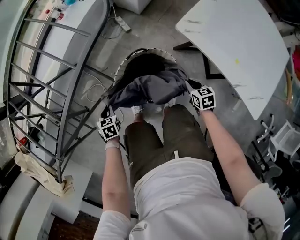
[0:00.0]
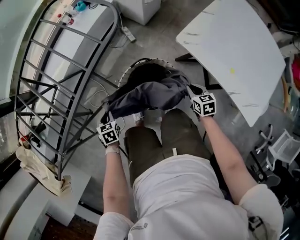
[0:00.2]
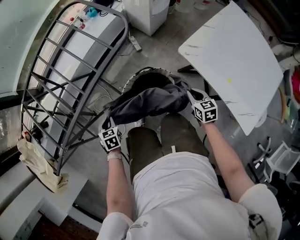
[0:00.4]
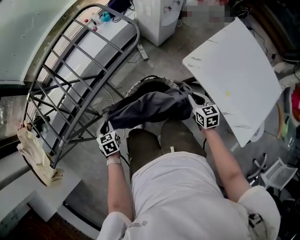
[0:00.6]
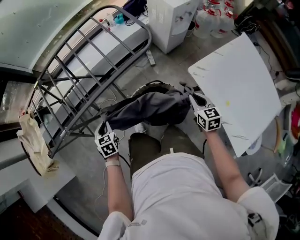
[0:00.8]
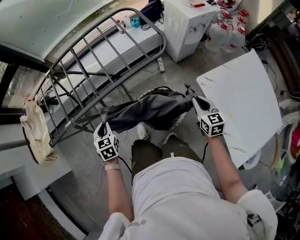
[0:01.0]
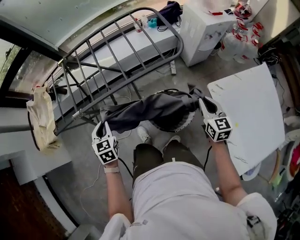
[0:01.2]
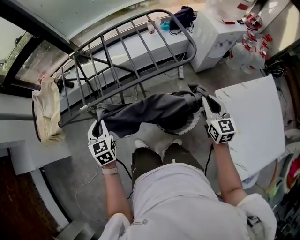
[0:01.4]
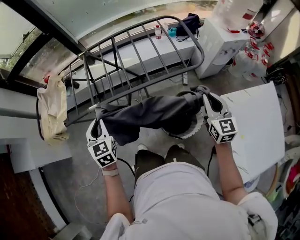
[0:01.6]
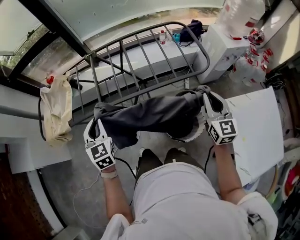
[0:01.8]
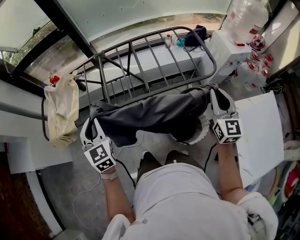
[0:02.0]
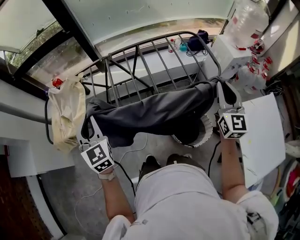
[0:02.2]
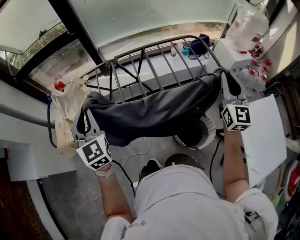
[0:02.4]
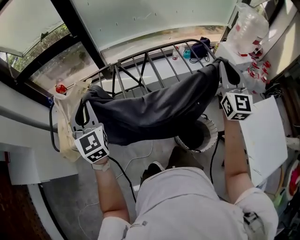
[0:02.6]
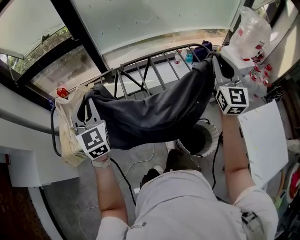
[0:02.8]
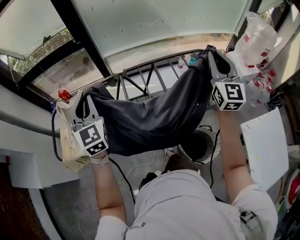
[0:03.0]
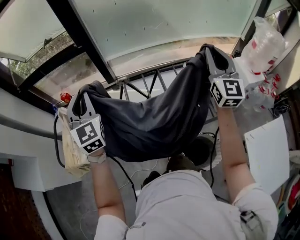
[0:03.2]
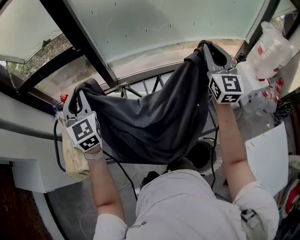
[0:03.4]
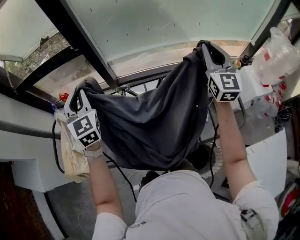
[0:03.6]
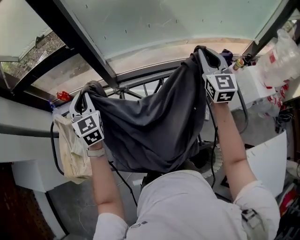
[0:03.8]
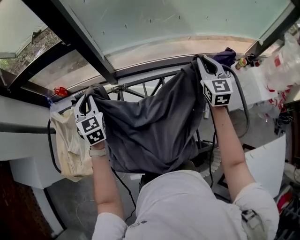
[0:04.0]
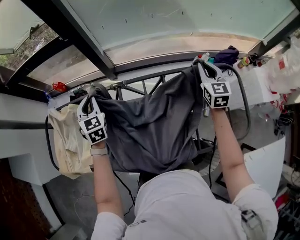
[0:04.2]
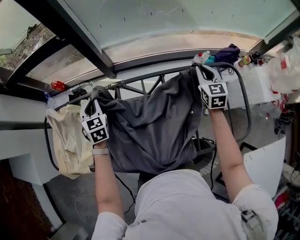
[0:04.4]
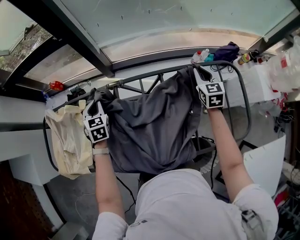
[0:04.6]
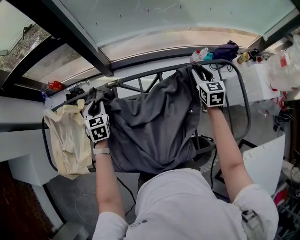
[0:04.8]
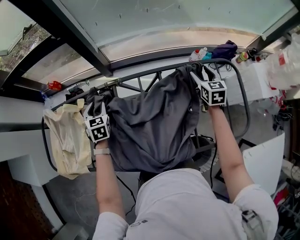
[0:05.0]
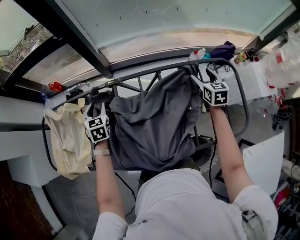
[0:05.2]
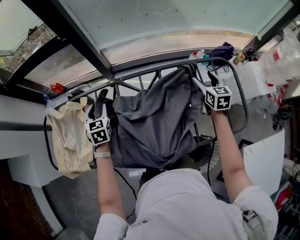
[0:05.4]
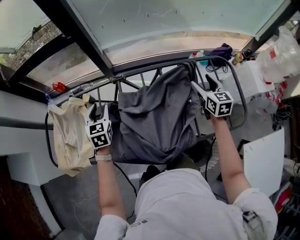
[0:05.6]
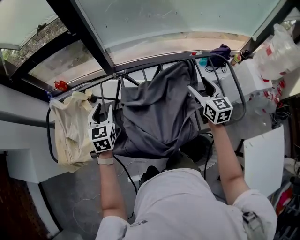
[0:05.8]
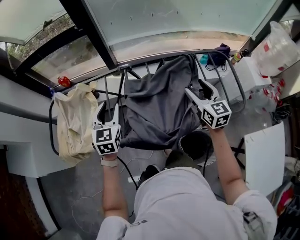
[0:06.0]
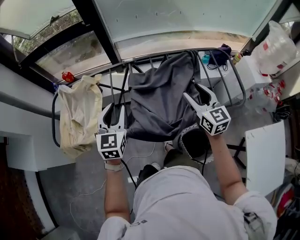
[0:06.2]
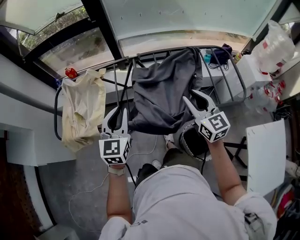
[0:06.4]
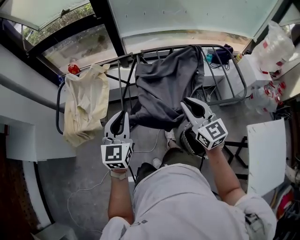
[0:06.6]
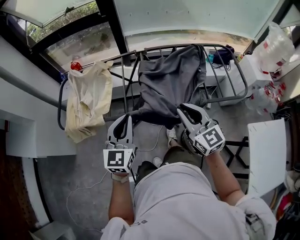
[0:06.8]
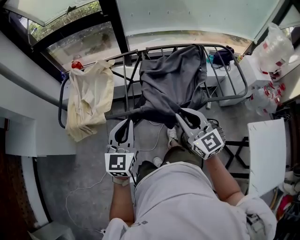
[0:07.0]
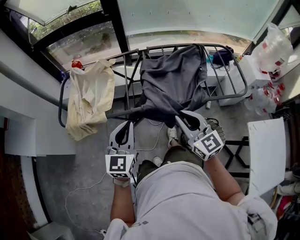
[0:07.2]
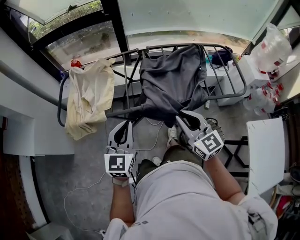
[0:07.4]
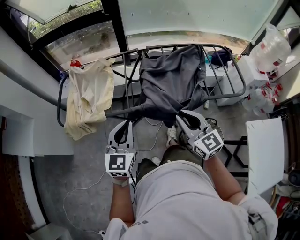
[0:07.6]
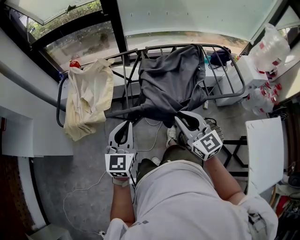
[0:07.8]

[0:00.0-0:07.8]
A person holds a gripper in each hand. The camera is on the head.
0:00.0 to 0:01.6: The grippers both shift upward by some 40 cm. The right gripper tips its fingers upward by approximately 40 degrees; the left gripper points its fingers roughly 40 degrees further upward.
0:01.6 to 0:03.2: The grippers both shift forward, upward and to the left by some 40 cm. The left gripper turns by about 30 degrees; the right gripper swivels about 30 degrees.
0:03.2 to 0:04.6: Both grippers move downward and forward, about 35 cm. The left gripper tilts its fingers some 40 degrees downward, while the right gripper angles its fingers downward, by approximately 40 degrees.
0:04.6 to 0:06.2: The left gripper shifts approximately 30 cm backward and upward, turns by approximately 30 degrees, and opens; the right gripper travels backward and to the left by approximately 35 cm, changes its angle by about 20 degrees, and opens its fingers.
0:06.2 to 0:07.8: The grippers both shift backward and to the left by about 25 cm. The left gripper closes. Meanwhile the right gripper closes its fingers.

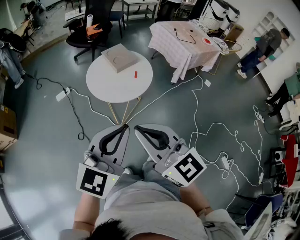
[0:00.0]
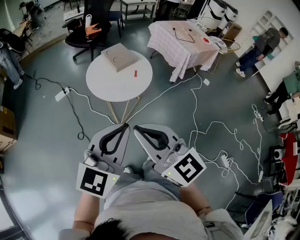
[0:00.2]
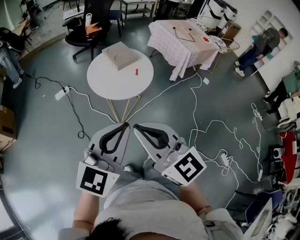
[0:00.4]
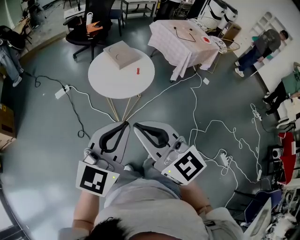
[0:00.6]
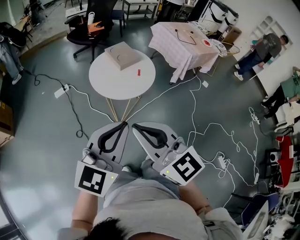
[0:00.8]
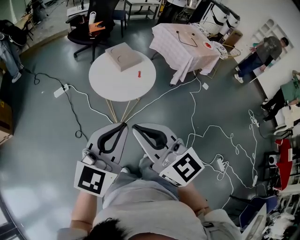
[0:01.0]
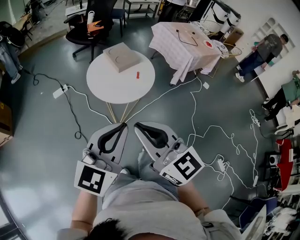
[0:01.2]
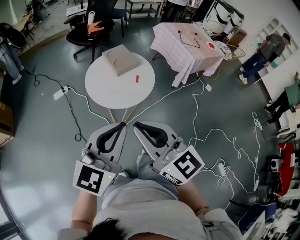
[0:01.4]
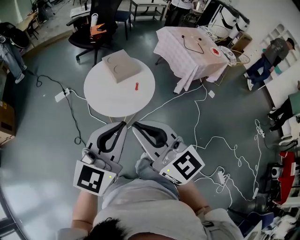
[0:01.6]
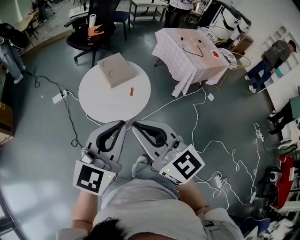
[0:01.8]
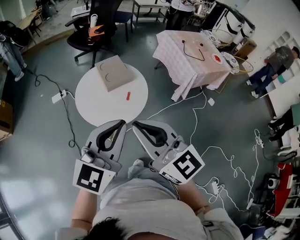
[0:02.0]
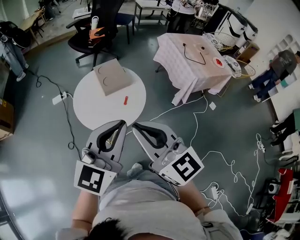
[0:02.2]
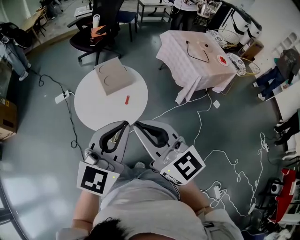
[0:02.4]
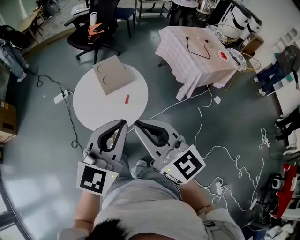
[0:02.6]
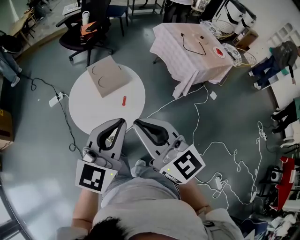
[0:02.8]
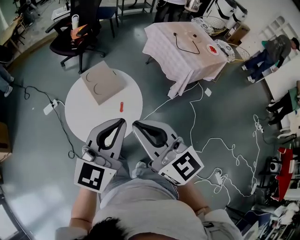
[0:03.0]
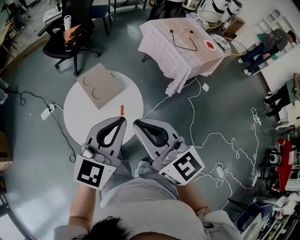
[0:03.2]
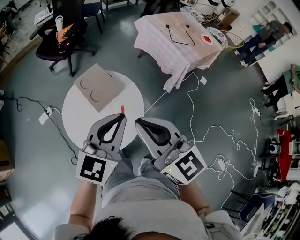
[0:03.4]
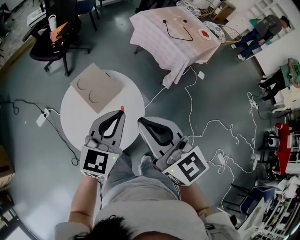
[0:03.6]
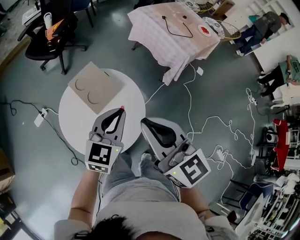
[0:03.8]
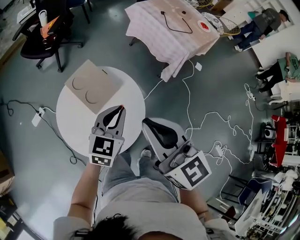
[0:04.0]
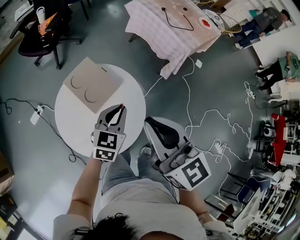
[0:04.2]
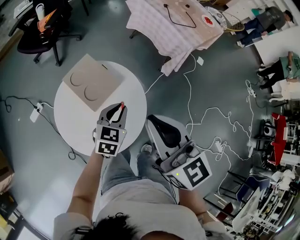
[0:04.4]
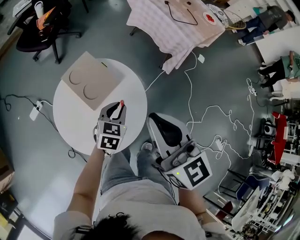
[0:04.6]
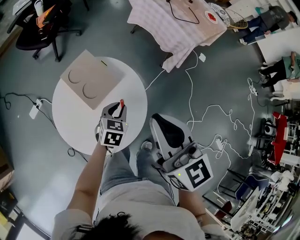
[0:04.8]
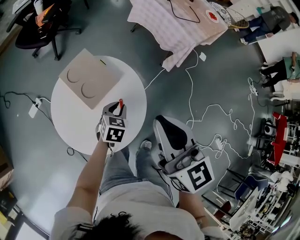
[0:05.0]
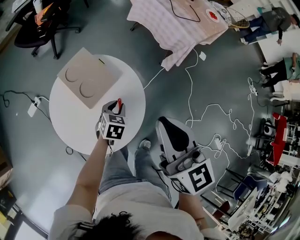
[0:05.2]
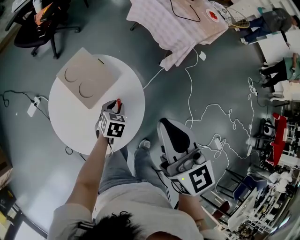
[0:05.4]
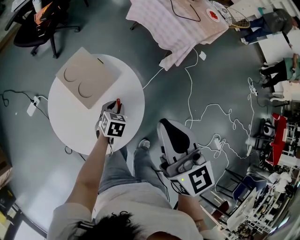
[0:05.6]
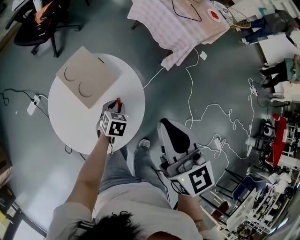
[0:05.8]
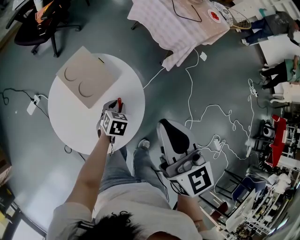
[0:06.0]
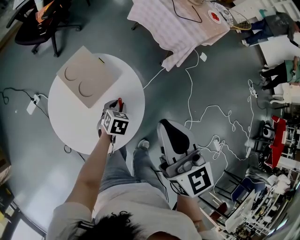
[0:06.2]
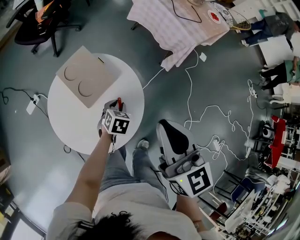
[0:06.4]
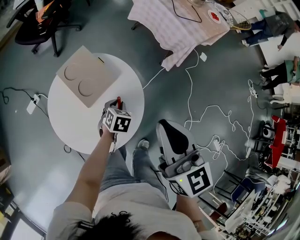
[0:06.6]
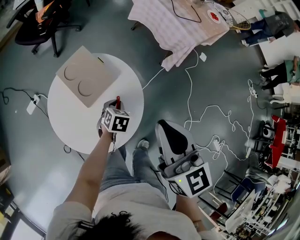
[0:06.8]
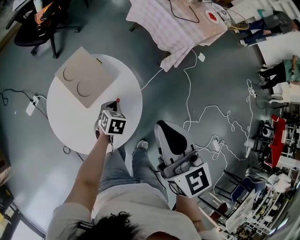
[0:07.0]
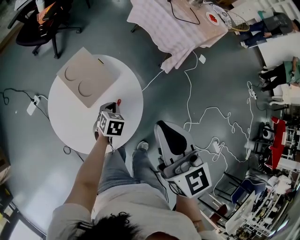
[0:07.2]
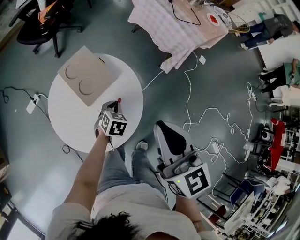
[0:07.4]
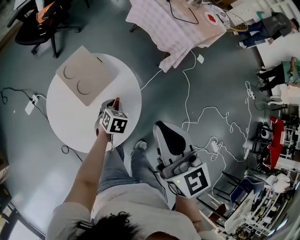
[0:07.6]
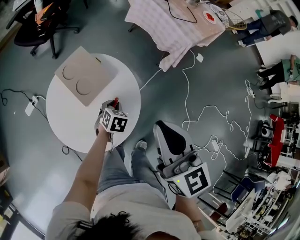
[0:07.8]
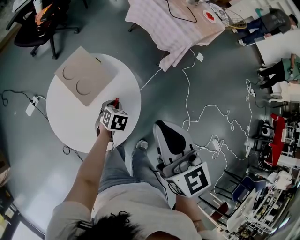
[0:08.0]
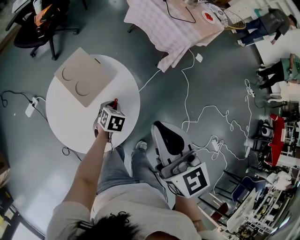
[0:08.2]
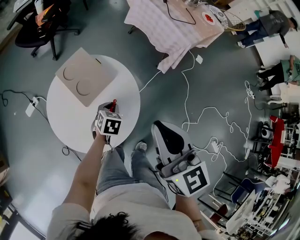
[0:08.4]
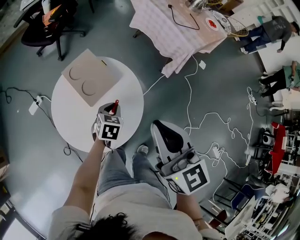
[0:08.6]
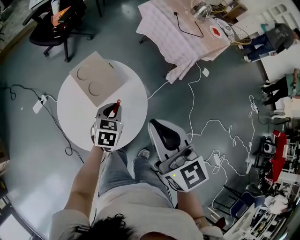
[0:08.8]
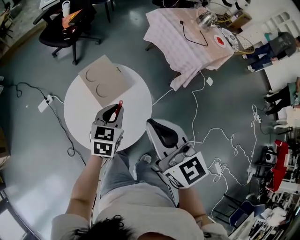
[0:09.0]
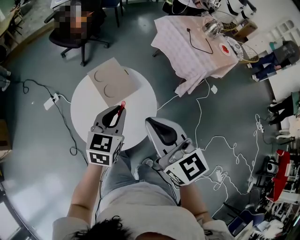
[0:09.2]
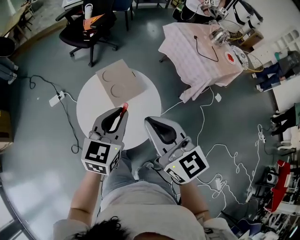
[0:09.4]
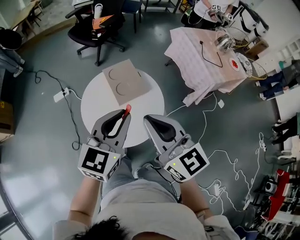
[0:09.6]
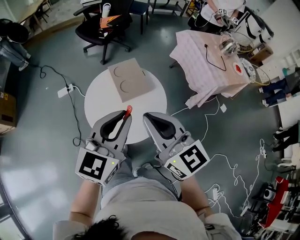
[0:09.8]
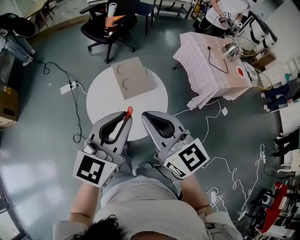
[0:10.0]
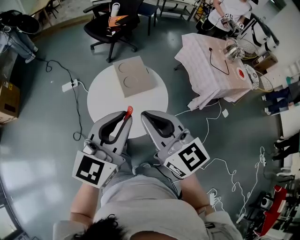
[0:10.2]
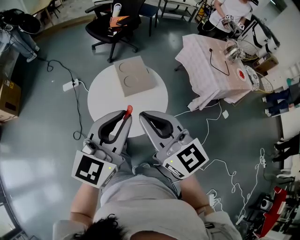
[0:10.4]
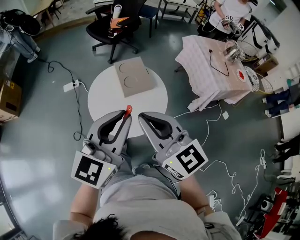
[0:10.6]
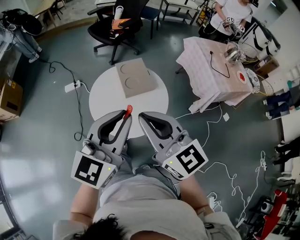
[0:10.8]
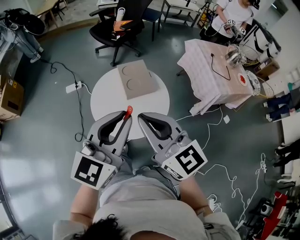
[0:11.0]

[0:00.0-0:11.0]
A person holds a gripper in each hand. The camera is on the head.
0:00.0 to 0:01.6: Both grippers travel together forward, some 10 cm.
0:01.6 to 0:03.2: The grippers both shift forward and to the right by about 25 cm.
0:03.2 to 0:04.8: The left gripper moves downward and forward, about 35 cm, and points its fingers some 40 degrees further downward. The right gripper heads forward and downward, covering about 10 cm, and swivels roughly 20 degrees.
0:04.8 to 0:06.2: The left gripper travels downward by roughly 5 cm.
0:06.2 to 0:07.8: The grippers make only small movements.
0:07.8 to 0:09.4: The right gripper moves to the left, roughly 10 cm, and turns by roughly 30 degrees, while the left gripper is displaced upward by approximately 30 cm, and points its fingers about 40 degrees further upward.
0:09.4 to 0:11.0: The left gripper heads backward and upward, covering some 15 cm. Meanwhile the right gripper shifts roughly 5 cm backward.

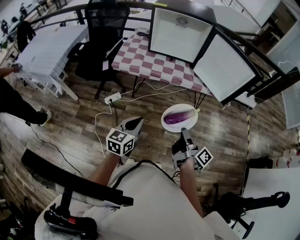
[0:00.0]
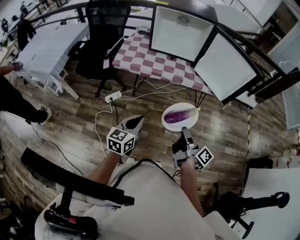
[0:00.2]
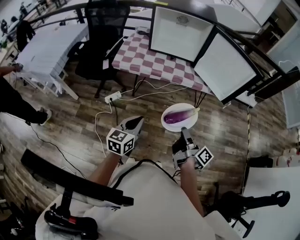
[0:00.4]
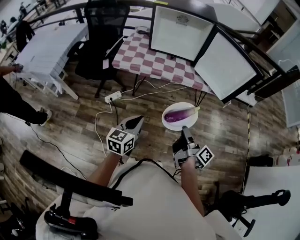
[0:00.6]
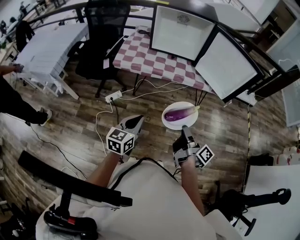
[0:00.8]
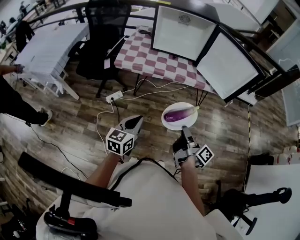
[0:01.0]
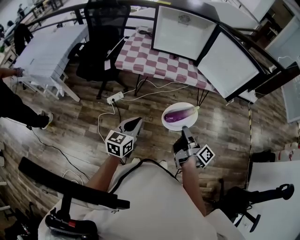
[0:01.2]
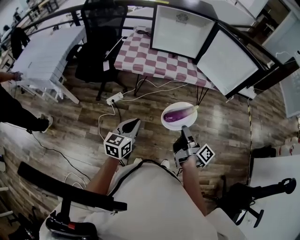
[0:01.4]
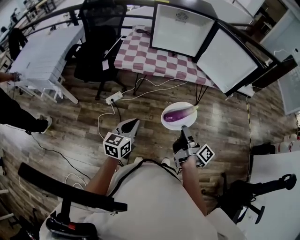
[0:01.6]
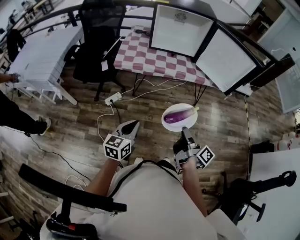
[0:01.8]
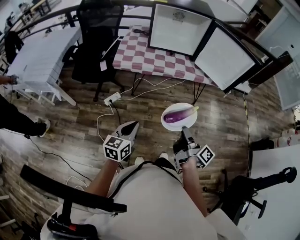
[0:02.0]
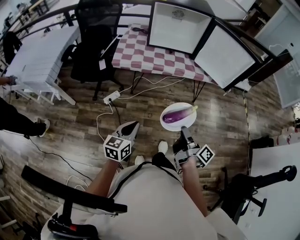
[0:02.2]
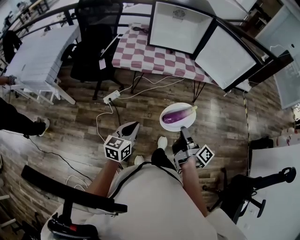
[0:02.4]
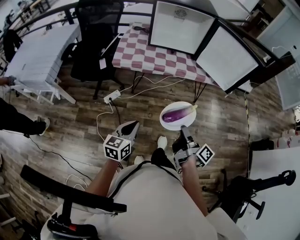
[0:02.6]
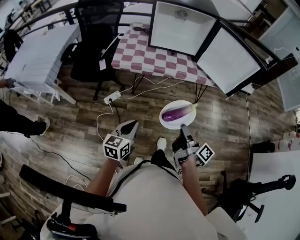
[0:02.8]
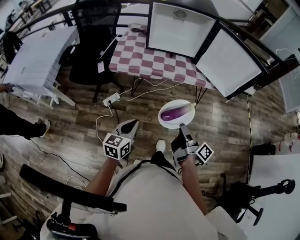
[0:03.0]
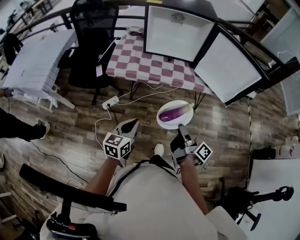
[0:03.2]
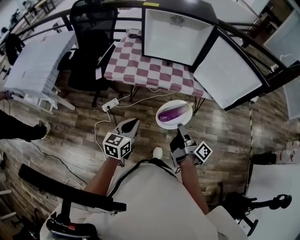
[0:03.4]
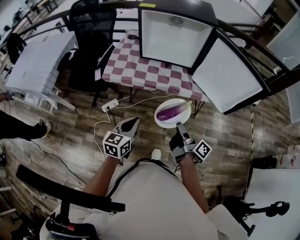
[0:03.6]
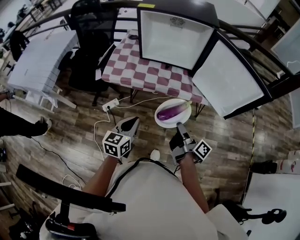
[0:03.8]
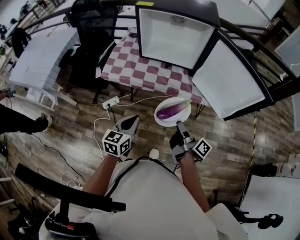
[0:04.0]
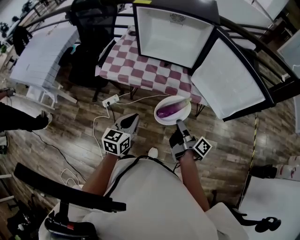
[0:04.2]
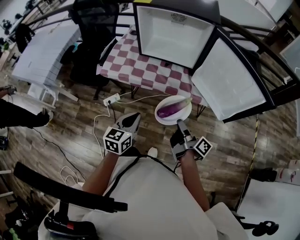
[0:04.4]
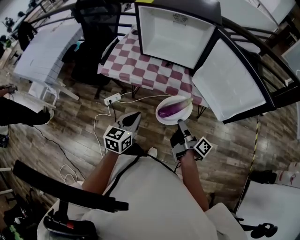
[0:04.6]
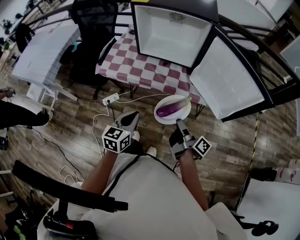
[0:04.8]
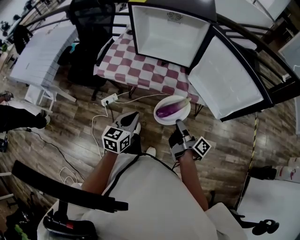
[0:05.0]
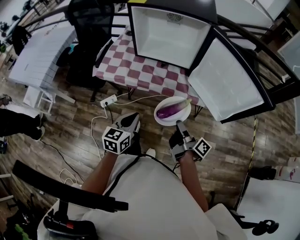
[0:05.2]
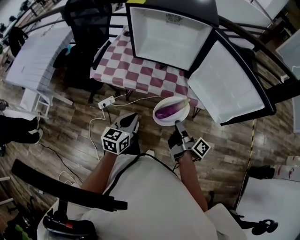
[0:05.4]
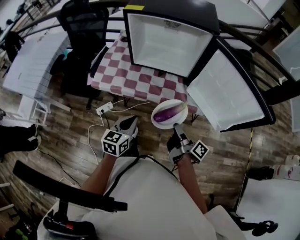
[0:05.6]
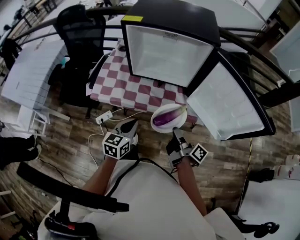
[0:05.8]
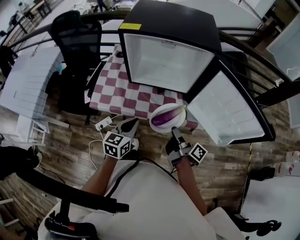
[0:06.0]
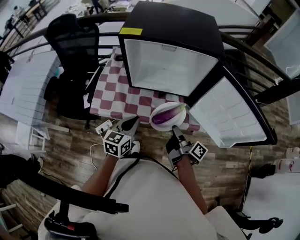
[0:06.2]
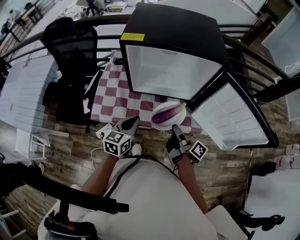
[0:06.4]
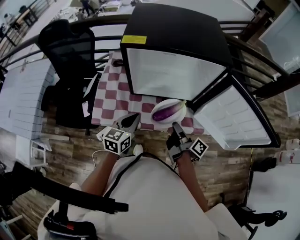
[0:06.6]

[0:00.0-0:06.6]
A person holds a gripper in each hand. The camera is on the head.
0:00.0 to 0:01.6: The left gripper changes place by approximately 10 cm.
0:01.6 to 0:03.2: The left gripper ends up roughly 10 cm from where it was.
0:03.2 to 0:05.0: The left gripper changes place by approximately 20 cm.
0:05.0 to 0:06.6: The left gripper shifts by roughly 30 cm.
